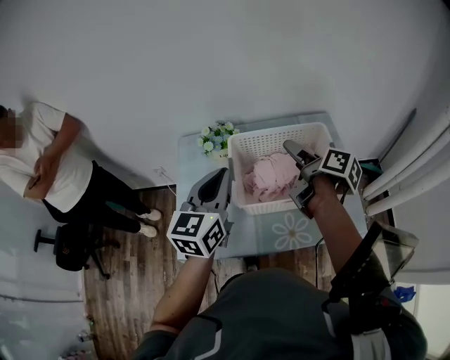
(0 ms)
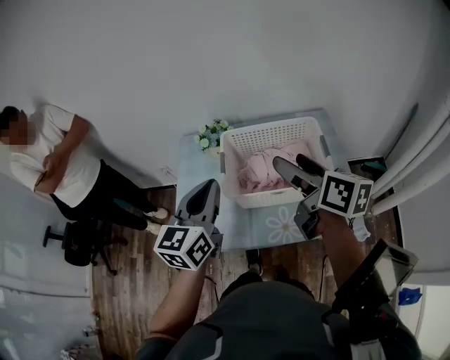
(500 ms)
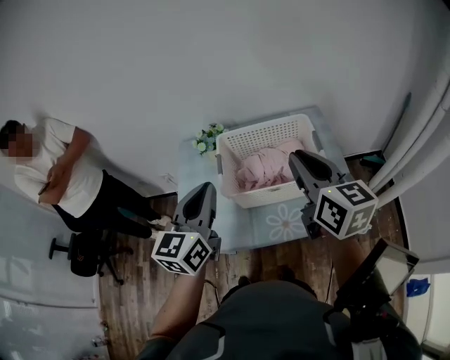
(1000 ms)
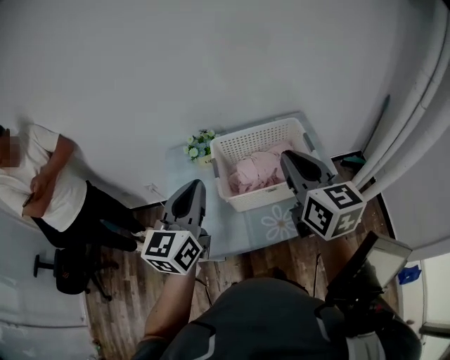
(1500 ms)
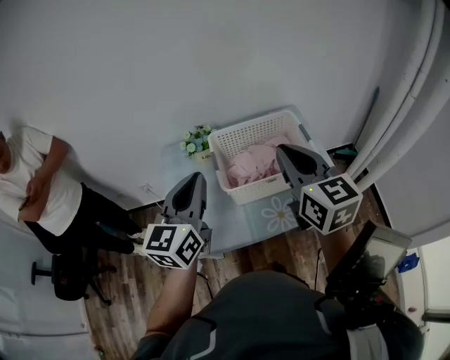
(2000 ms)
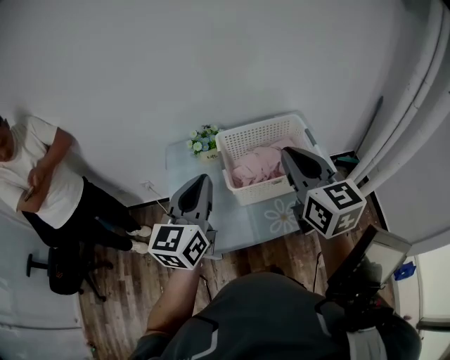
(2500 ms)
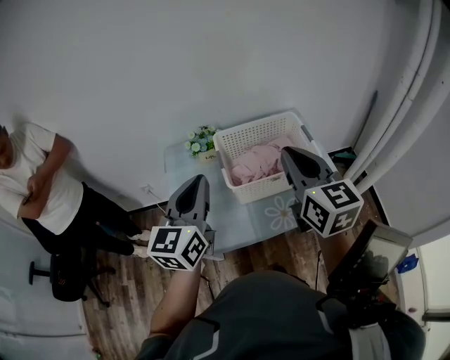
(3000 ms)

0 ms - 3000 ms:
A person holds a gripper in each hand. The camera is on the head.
0 ms - 1500 ms: The left gripper heads backward, covering some 5 cm, while the right gripper heads upward and backward, covering some 20 cm, rotates around the line of its fingers by about 60 degrees, counterclockwise from behind, and closes.
1500 ms - 3000 ms: The right gripper ends up some 5 cm from where it was.

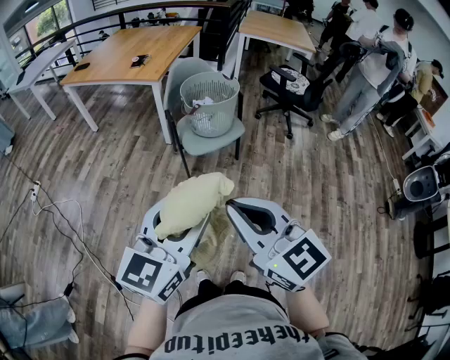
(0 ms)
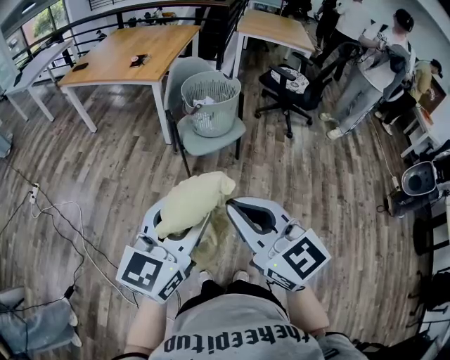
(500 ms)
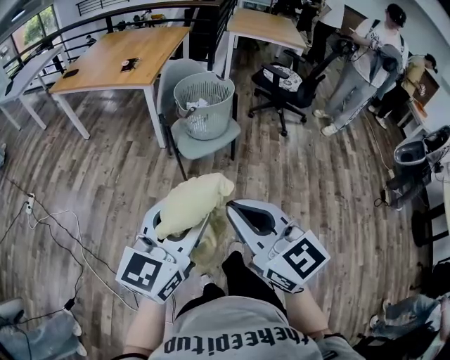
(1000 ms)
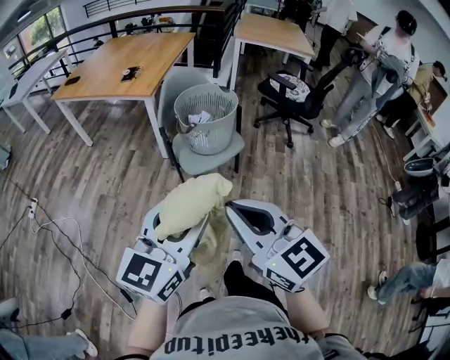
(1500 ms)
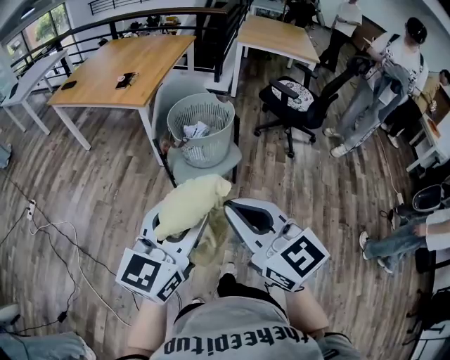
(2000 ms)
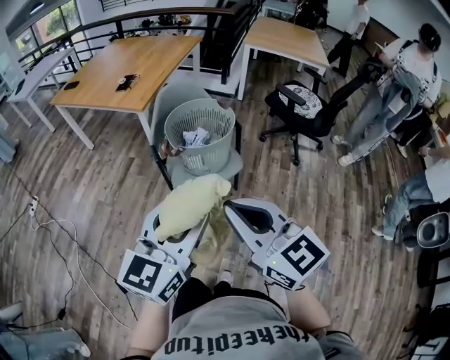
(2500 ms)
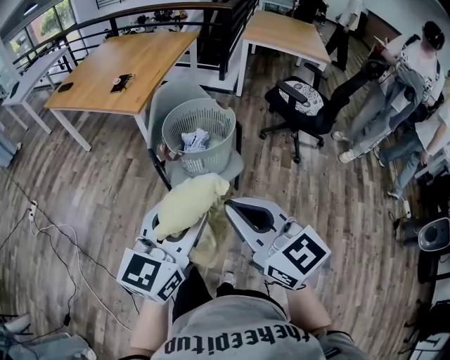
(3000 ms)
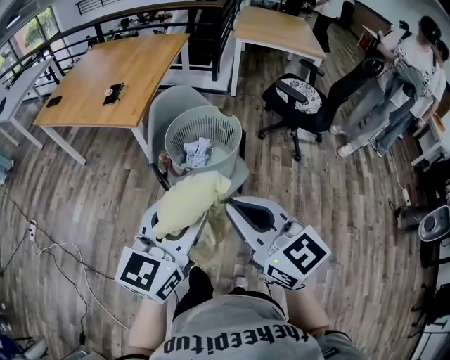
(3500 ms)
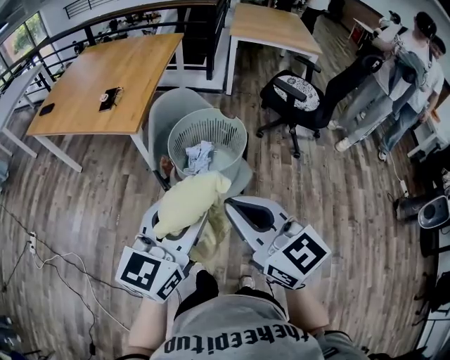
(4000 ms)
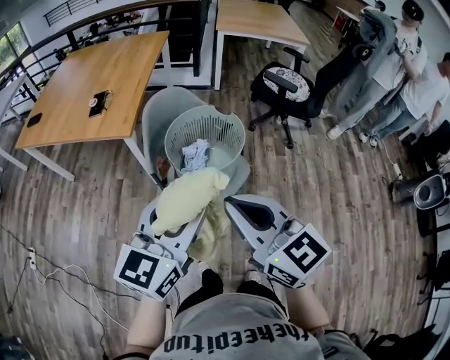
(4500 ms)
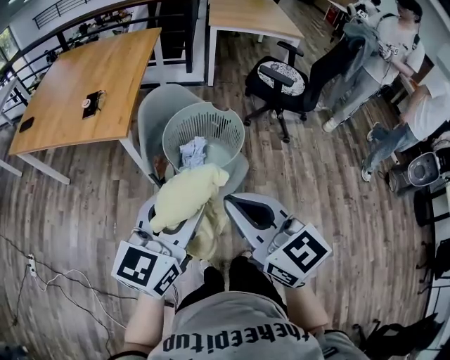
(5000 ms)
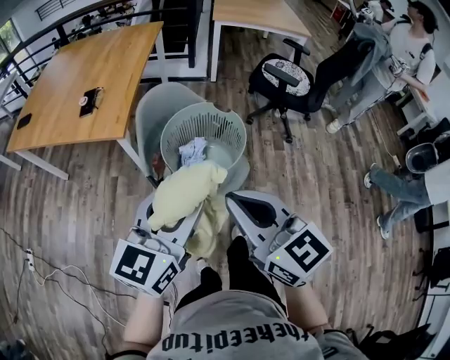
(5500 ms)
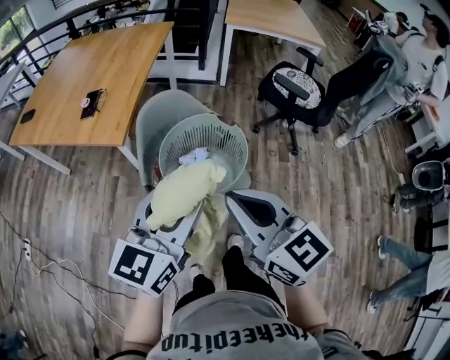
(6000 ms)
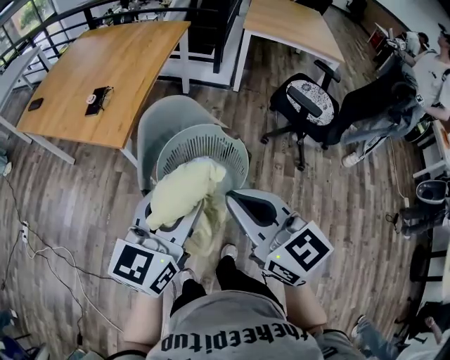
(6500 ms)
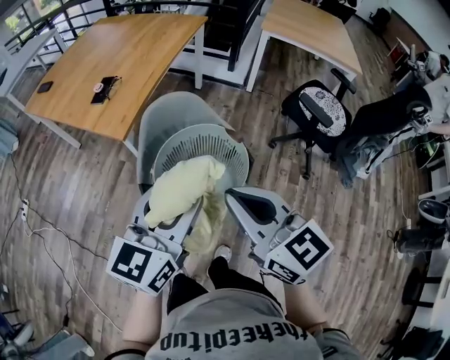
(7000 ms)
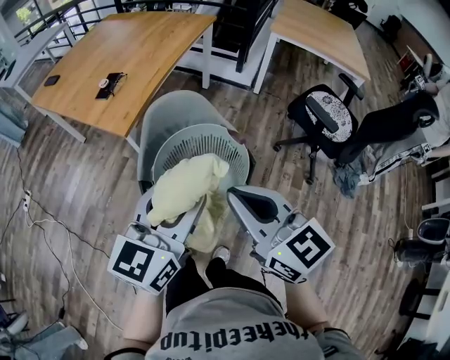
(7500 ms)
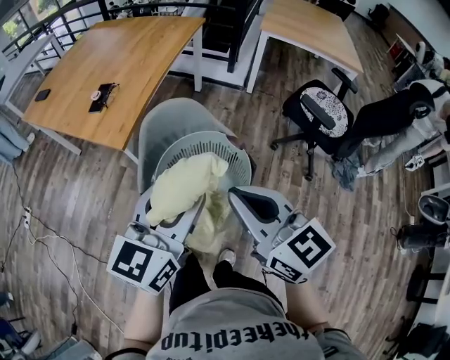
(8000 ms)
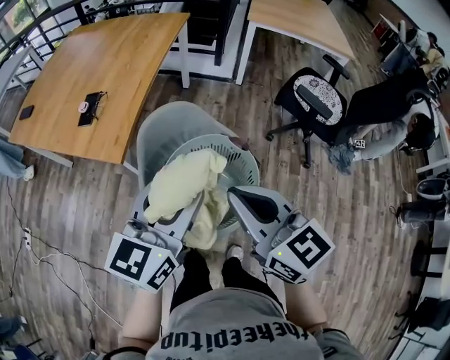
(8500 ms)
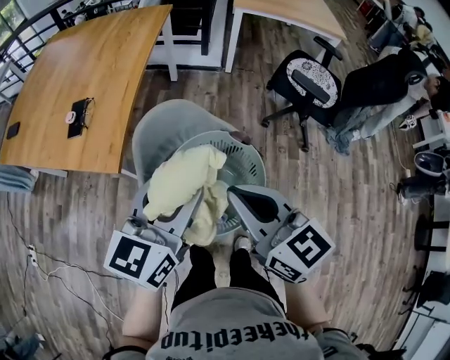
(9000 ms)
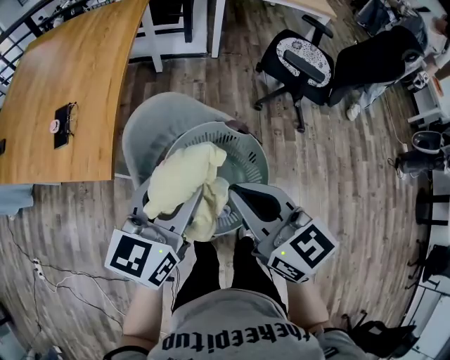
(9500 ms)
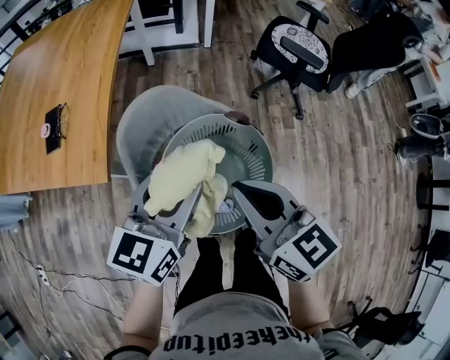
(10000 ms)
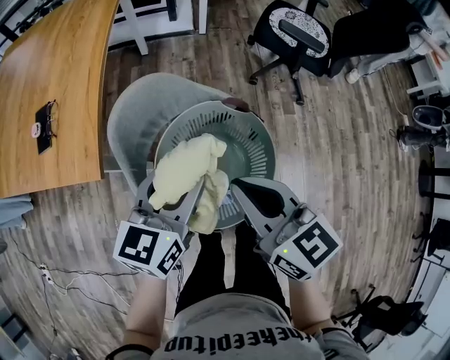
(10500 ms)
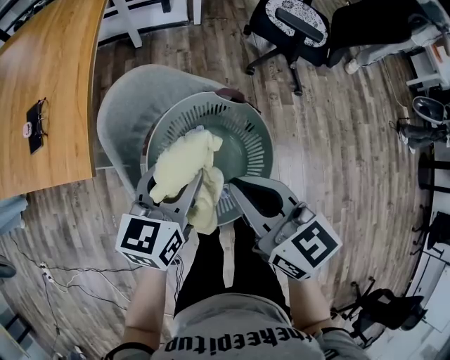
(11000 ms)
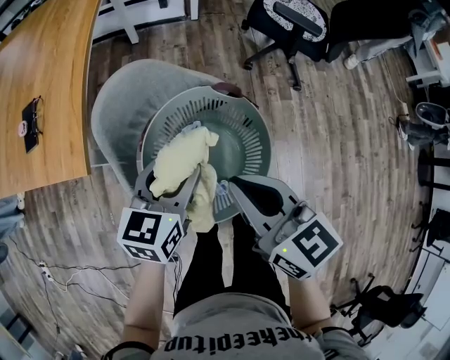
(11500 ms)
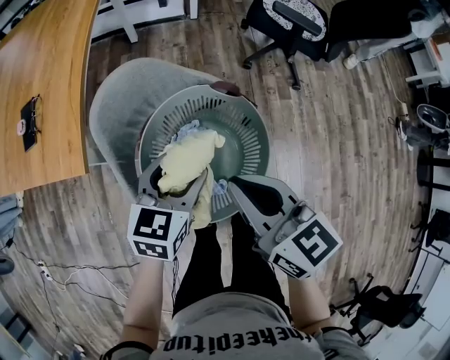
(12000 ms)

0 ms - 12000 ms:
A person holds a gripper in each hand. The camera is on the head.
0 ms - 2000 ms: Both grippers move forward, about 20 cm.
2000 ms - 4000 ms: Both grippers move forward, approximately 20 cm.
4000 ms - 6000 ms: Both grippers move forward, about 15 cm.
6000 ms - 8000 ms: Both grippers move forward and to the right, about 10 cm.
8000 ms - 10000 ms: The right gripper moves downward, forward and to the left, some 15 cm, and rotates approximately 30 degrees; the left gripper goes approximately 15 cm forward, downward and to the left, and rotates approximately 20 degrees.
10000 ms - 12000 ms: The right gripper heads downward, covering roughly 5 cm; the left gripper shifts approximately 15 cm downward.

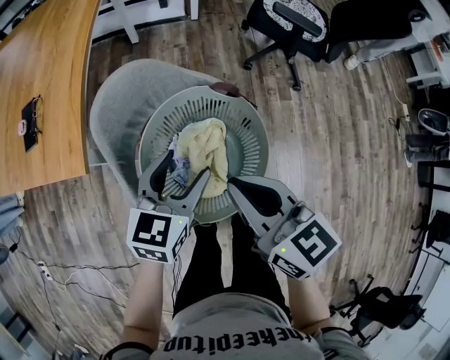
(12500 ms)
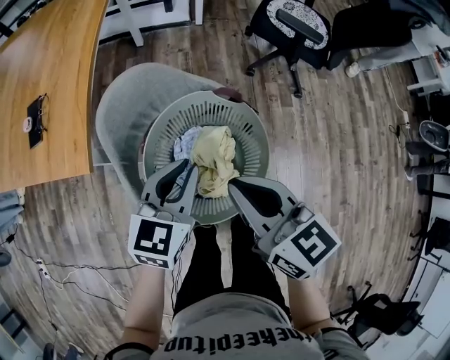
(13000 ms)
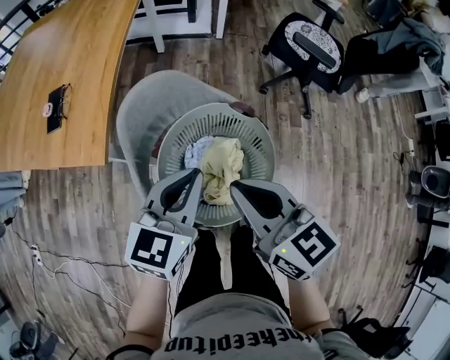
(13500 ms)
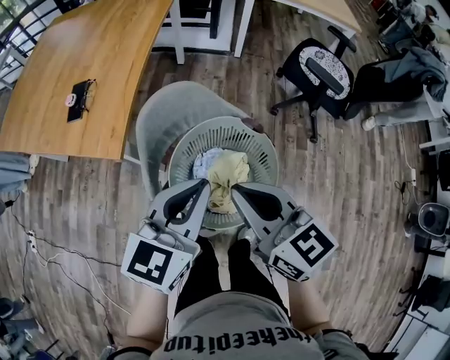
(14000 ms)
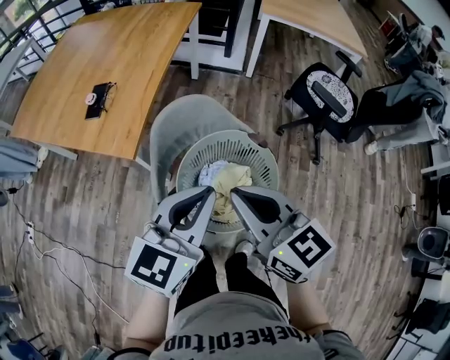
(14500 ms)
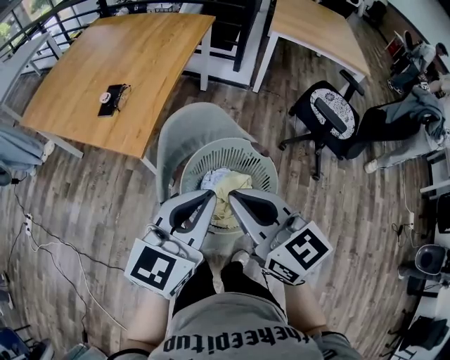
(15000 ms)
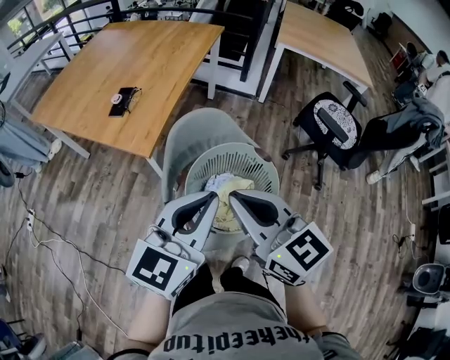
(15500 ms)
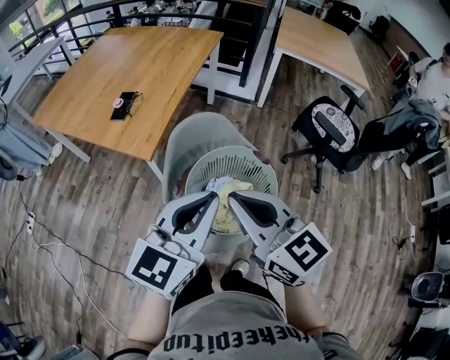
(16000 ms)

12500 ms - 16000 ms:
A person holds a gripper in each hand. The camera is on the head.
12500 ms - 14500 ms: The left gripper is displaced upward by roughly 15 cm, and closes up. The right gripper goes about 10 cm upward, and rotates about 20 degrees.
14500 ms - 16000 ms: The two grippers go about 5 cm upward.

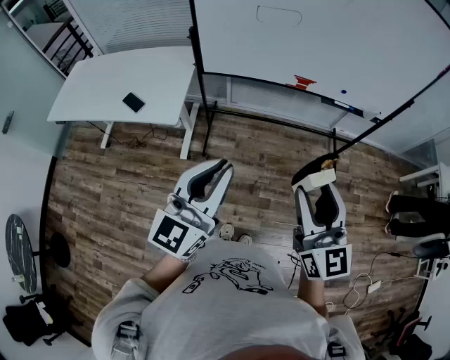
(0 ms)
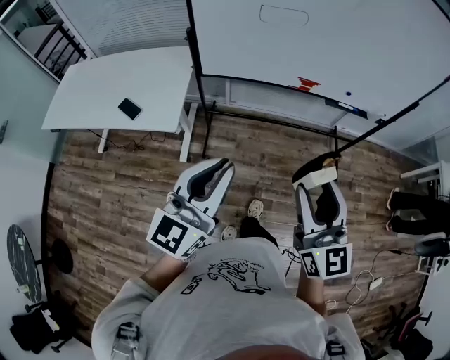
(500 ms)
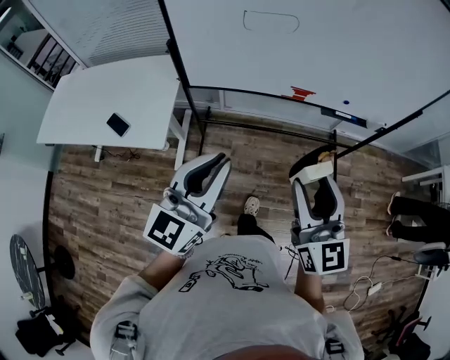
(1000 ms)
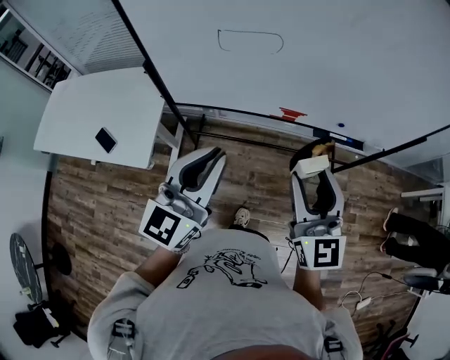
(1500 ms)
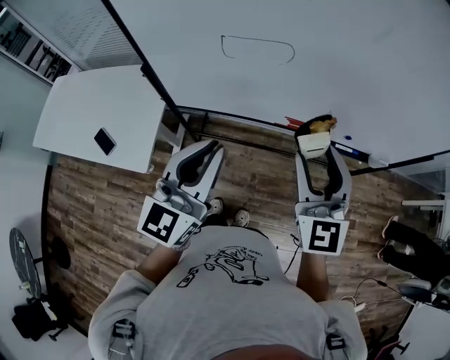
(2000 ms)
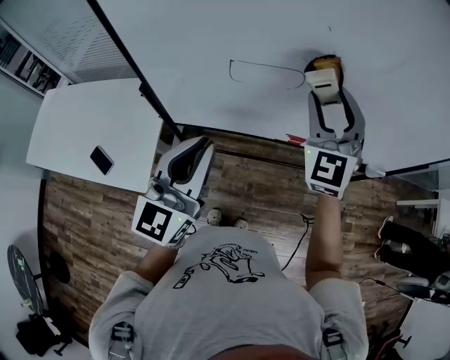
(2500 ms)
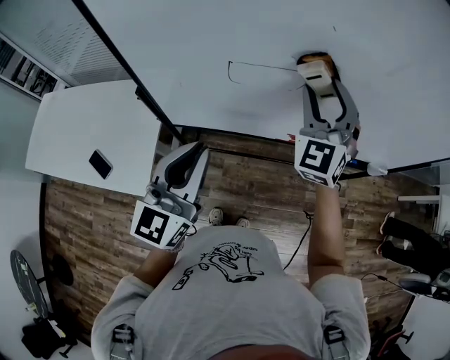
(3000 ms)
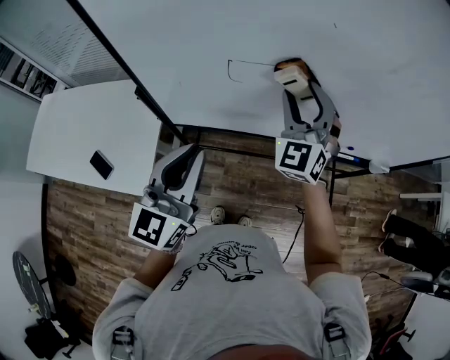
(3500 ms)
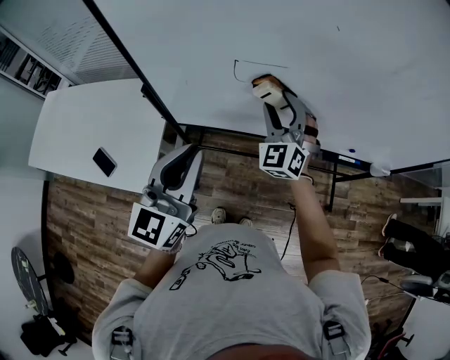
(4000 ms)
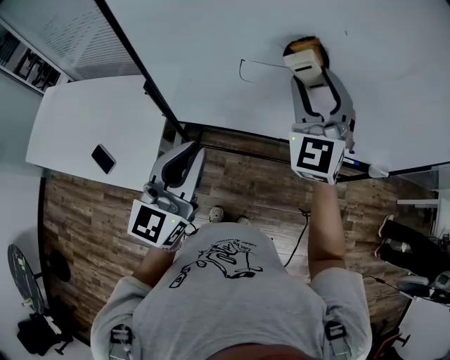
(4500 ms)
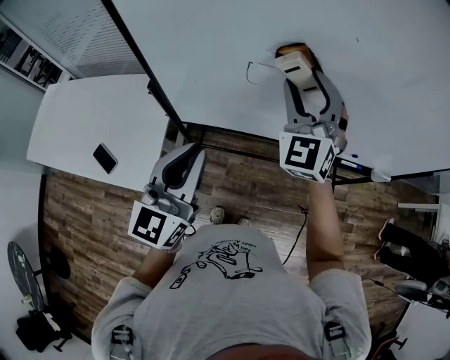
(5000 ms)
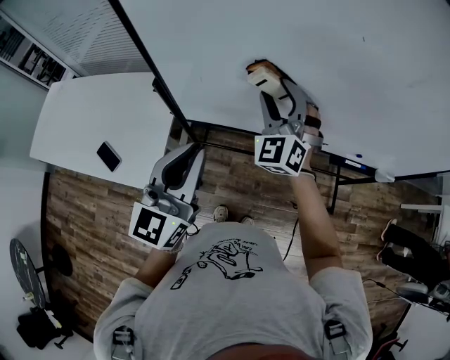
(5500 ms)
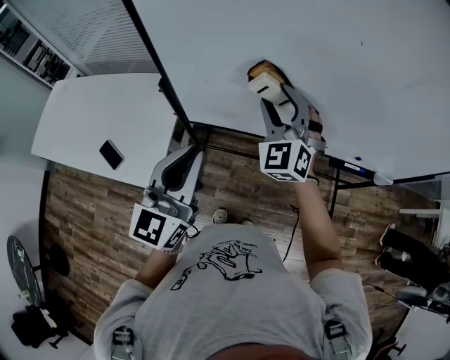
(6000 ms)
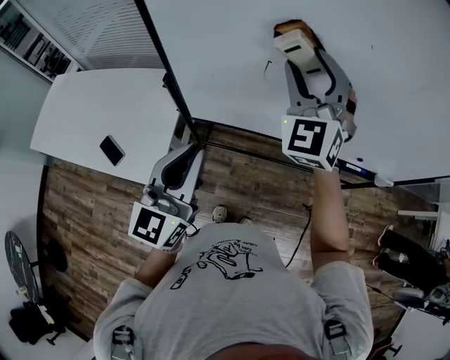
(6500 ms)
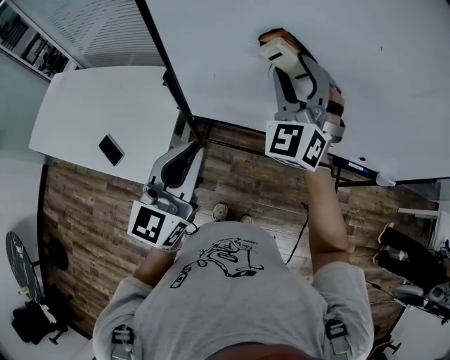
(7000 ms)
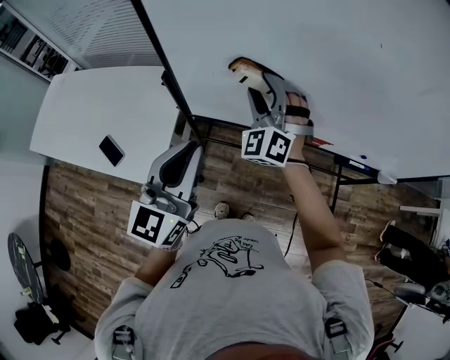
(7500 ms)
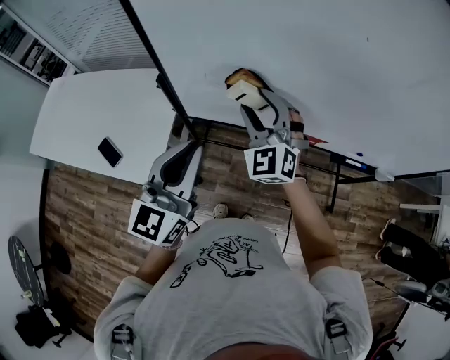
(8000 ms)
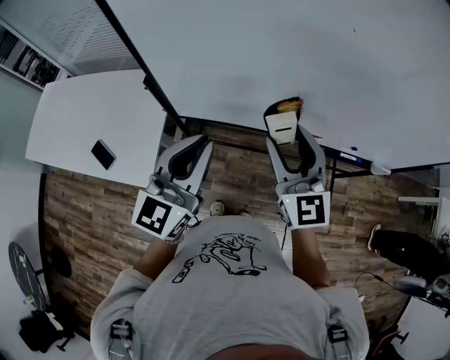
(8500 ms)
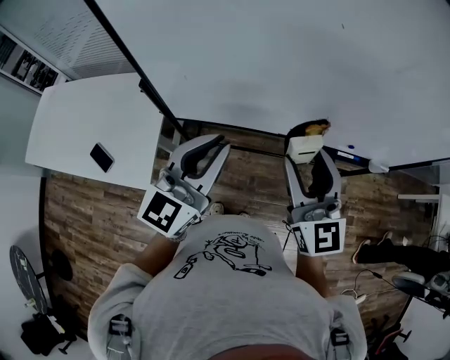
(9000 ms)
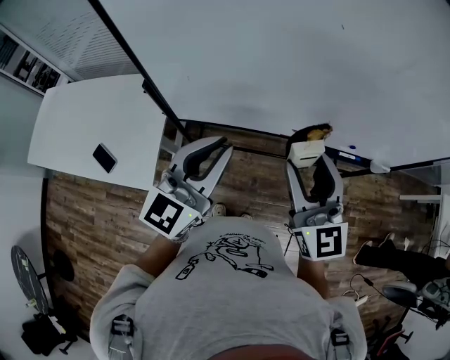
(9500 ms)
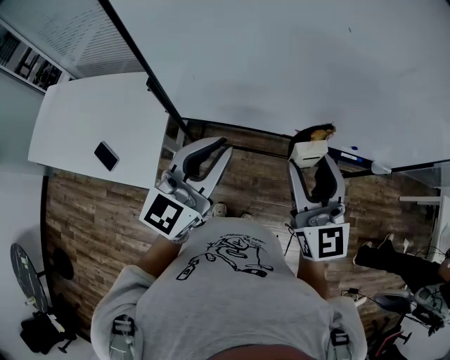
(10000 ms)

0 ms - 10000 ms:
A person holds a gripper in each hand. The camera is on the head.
0 ms - 2000 ms: Both grippers move forward, roughly 40 cm.
2000 ms - 4000 ms: The left gripper goes some 10 cm to the left and forward. Meanwhile the right gripper heads forward, to the left and downward, covering approximately 25 cm, and changes its angle by some 30 degrees.
4000 ms - 6000 ms: The right gripper goes about 5 cm to the left, and moves roughly 15 cm upward and comes back.
6000 ms - 8000 ms: The right gripper goes upward and returns, some 10 cm each way.
8000 ms - 10000 ms: The right gripper goes roughly 20 cm to the right, backward and upward, and swivels approximately 40 degrees, while the left gripper moves to the right, about 10 cm.
